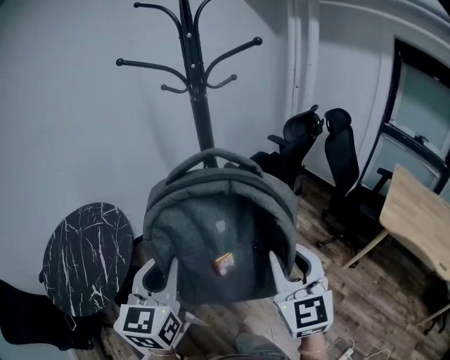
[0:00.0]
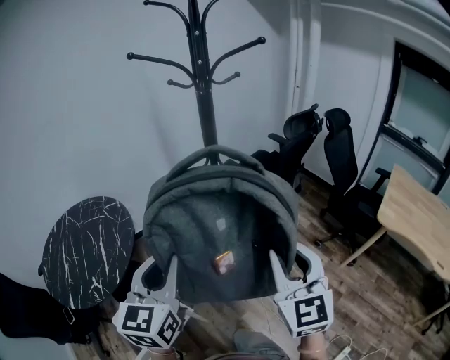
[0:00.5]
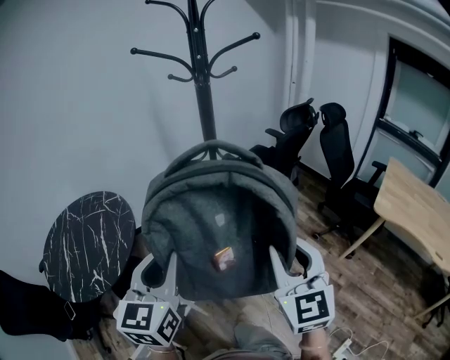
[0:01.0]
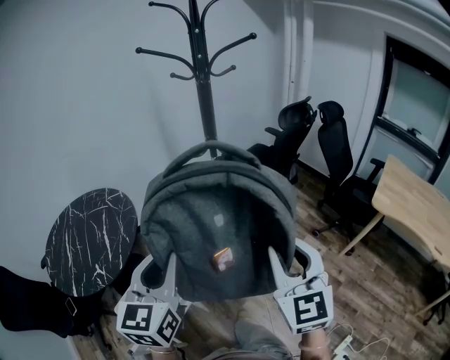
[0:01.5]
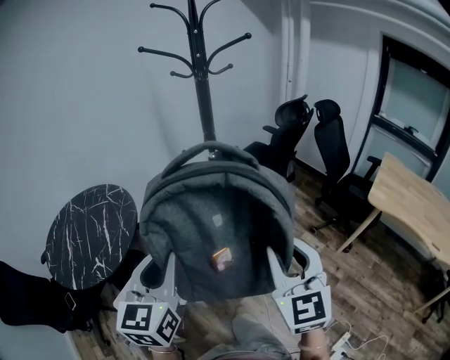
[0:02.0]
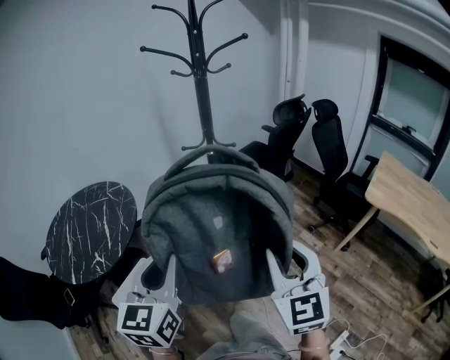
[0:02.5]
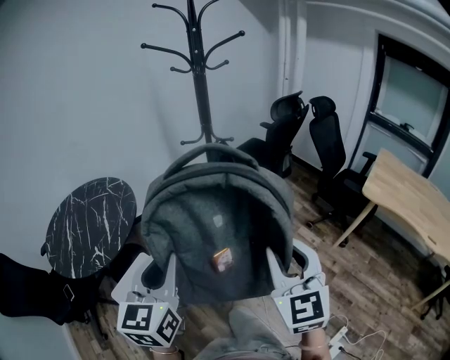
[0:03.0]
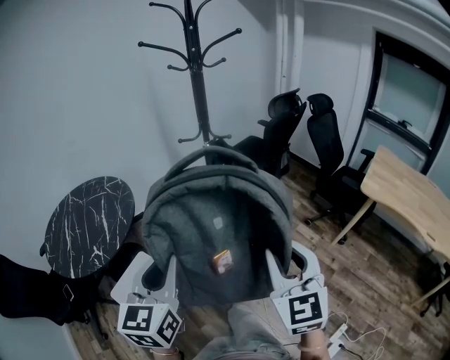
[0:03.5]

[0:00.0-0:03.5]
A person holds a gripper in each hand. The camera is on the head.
0:00.0 to 0:02.0: Both grippers travel together backward, roughly 15 cm.
0:02.0 to 0:03.5: The two grippers go some 5 cm backward.

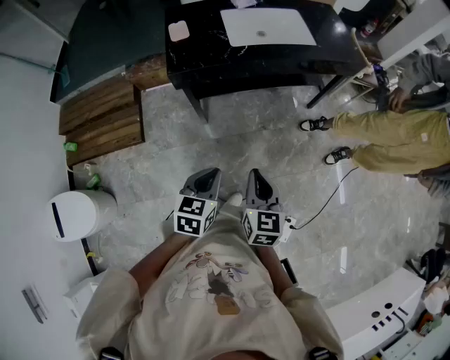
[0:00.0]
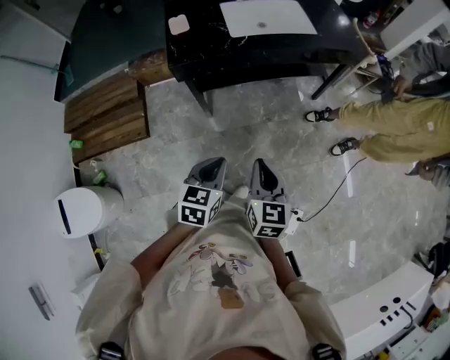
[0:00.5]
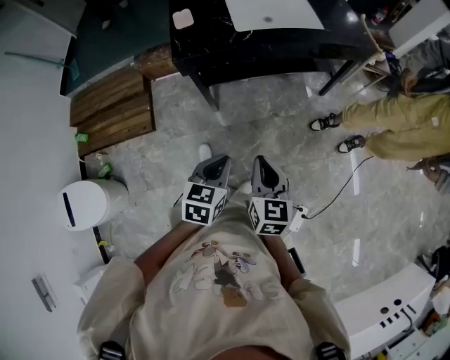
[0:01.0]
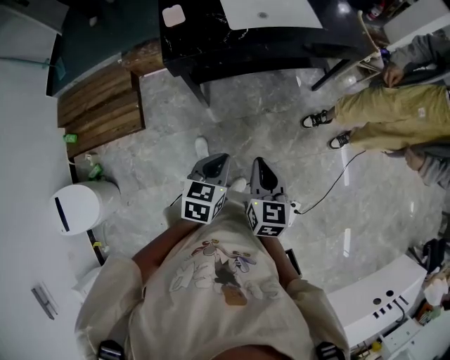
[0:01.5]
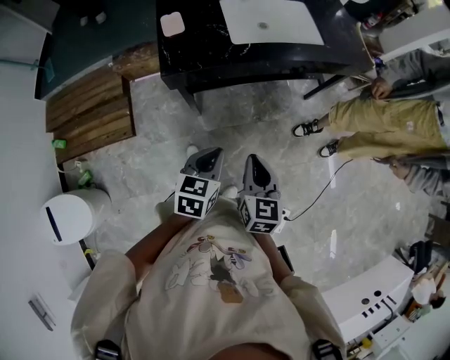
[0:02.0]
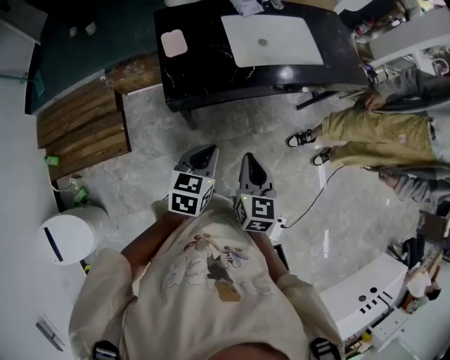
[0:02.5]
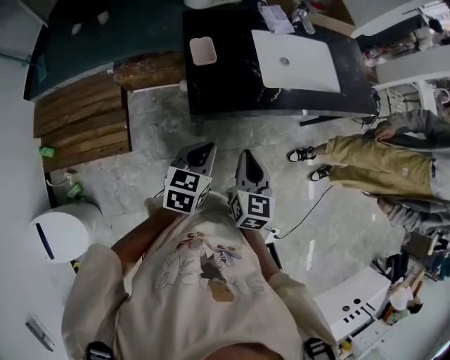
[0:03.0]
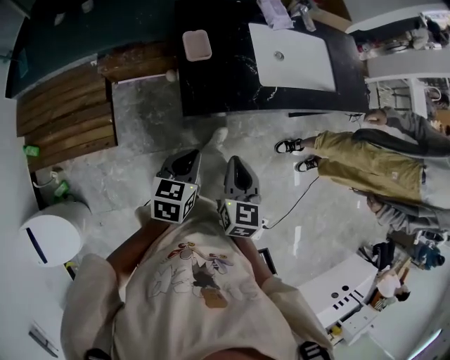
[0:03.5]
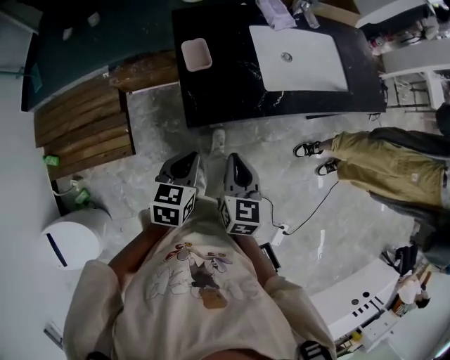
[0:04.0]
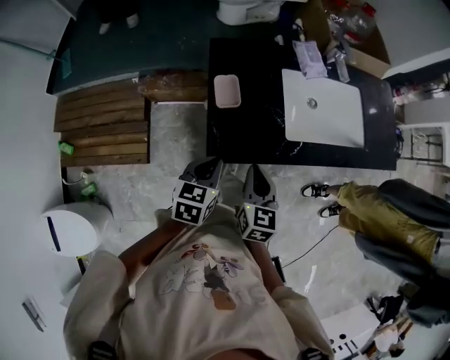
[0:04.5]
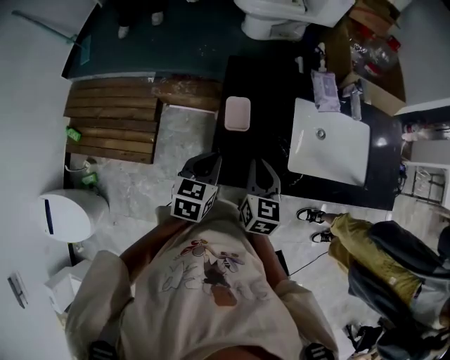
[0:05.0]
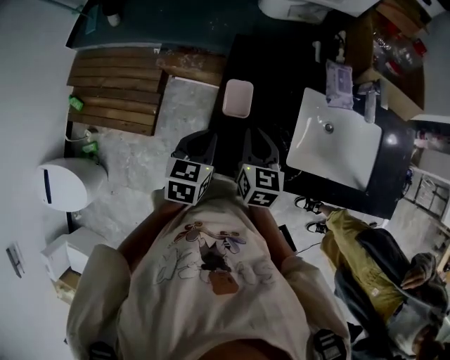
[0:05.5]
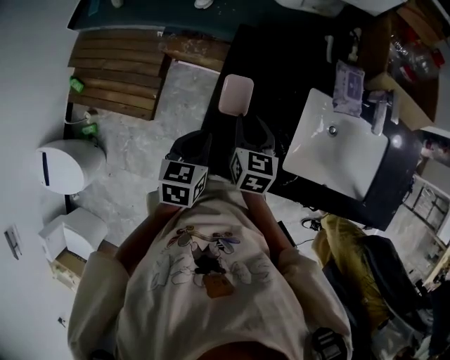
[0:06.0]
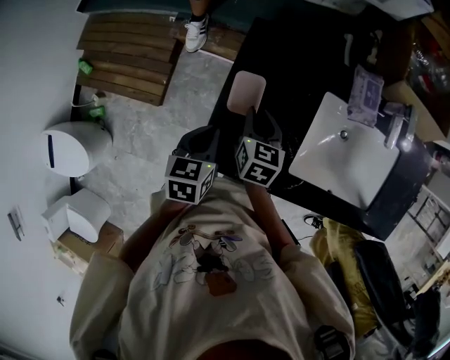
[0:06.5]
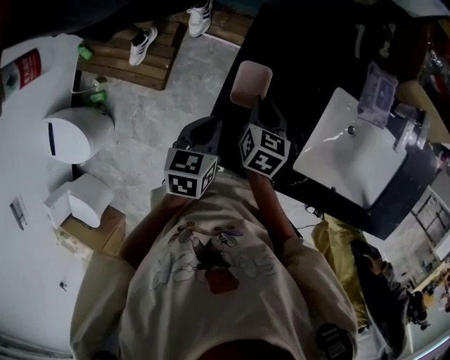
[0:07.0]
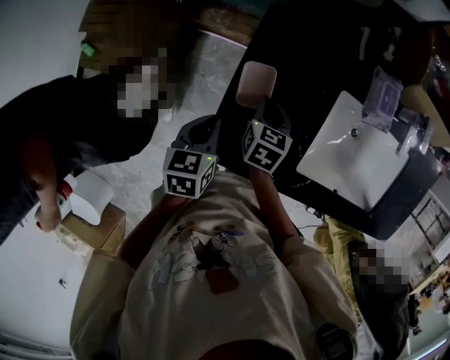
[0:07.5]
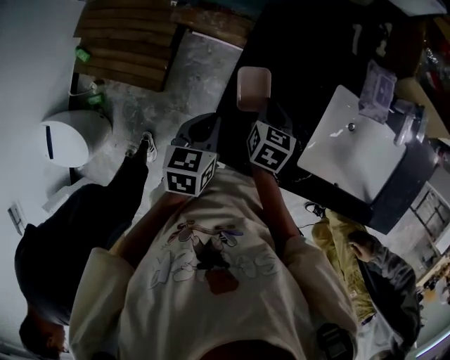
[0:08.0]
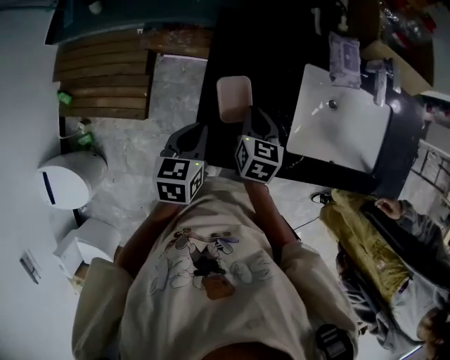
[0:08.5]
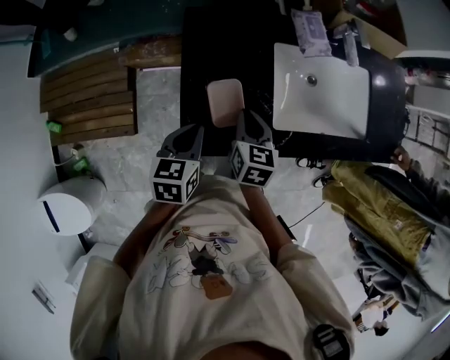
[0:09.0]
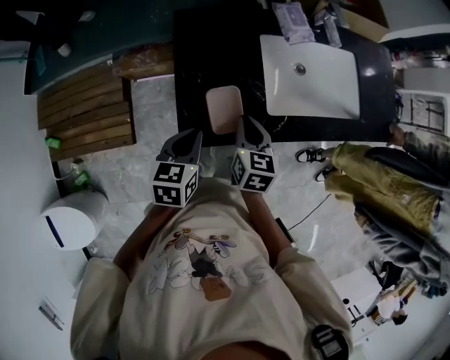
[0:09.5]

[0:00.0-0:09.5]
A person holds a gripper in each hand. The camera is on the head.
0:00.0 to 0:02.0: The left gripper is displaced forward by about 15 cm; the right gripper shifts some 10 cm forward and to the left.
0:02.0 to 0:04.0: Both grippers move to the left and forward, roughly 30 cm.
0:04.0 to 0:05.5: The left gripper shifts by approximately 25 cm, and turns by some 20 degrees; the right gripper shifts by approximately 30 cm, and changes its angle by approximately 20 degrees.
0:05.5 to 0:07.5: The right gripper is displaced downward and forward by some 15 cm. Meanwhile the left gripper moves downward, about 5 cm.
0:07.5 to 0:09.5: The right gripper shifts some 20 cm backward, to the right and upward, and changes its angle by approximately 20 degrees, while the left gripper moves backward, to the right and upward, roughly 15 cm, and changes its angle by some 30 degrees.

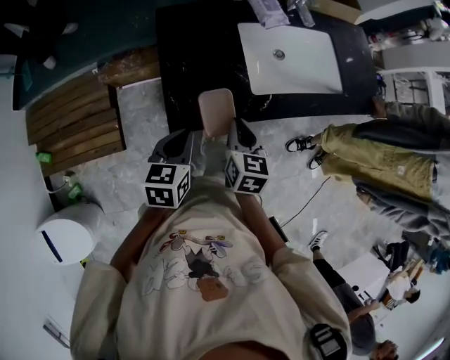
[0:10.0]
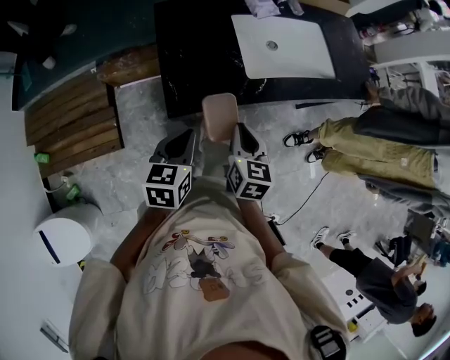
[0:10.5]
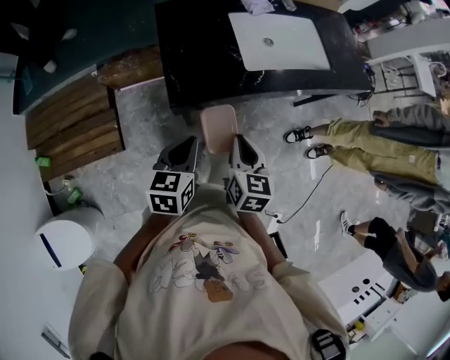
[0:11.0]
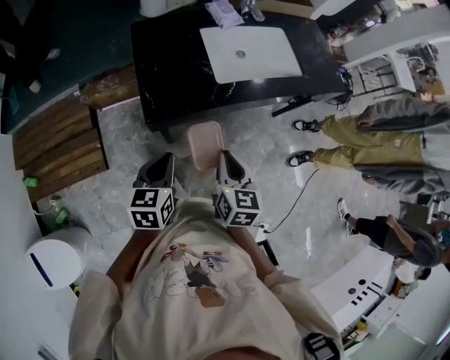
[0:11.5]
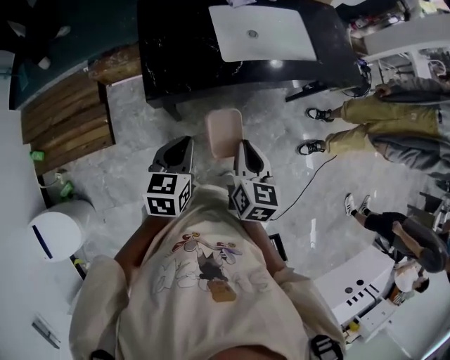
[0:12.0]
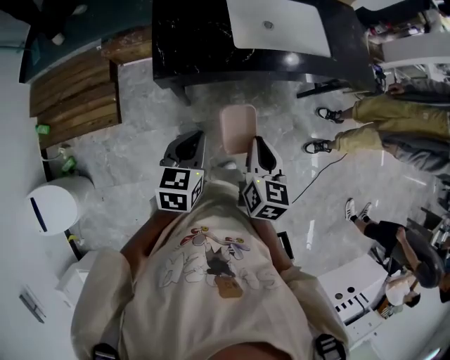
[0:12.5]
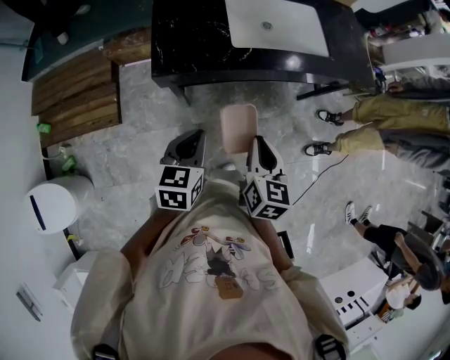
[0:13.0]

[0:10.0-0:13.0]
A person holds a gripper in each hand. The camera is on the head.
0:10.0 to 0:11.5: The left gripper heads backward, covering approximately 15 cm; the right gripper goes some 20 cm backward and to the right.
0:11.5 to 0:13.0: The grippers both shift to the right by about 15 cm.

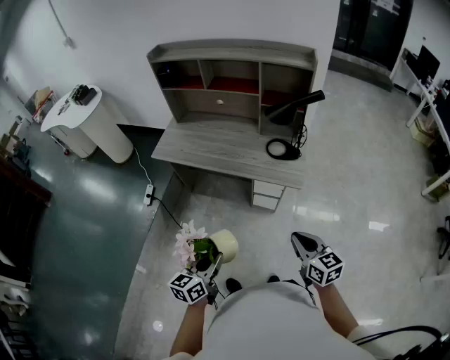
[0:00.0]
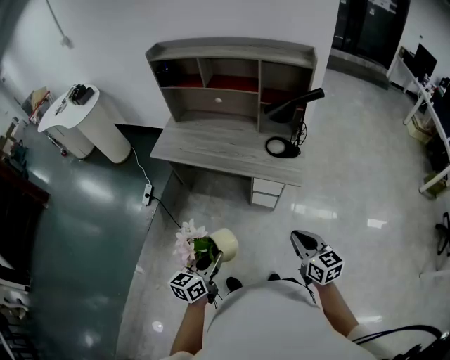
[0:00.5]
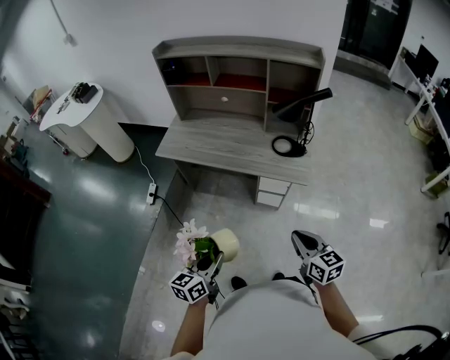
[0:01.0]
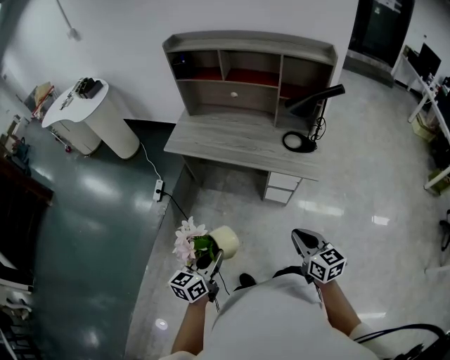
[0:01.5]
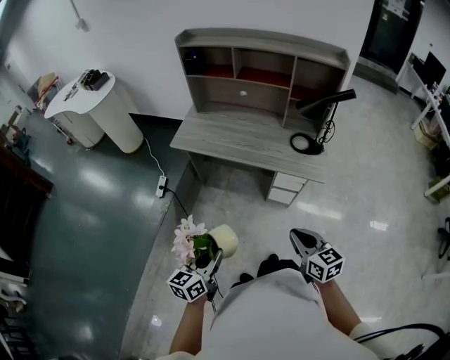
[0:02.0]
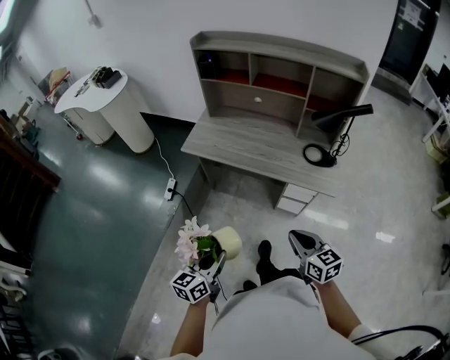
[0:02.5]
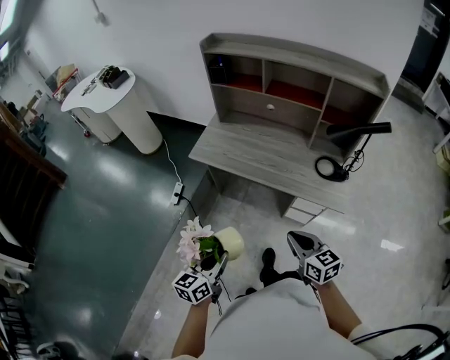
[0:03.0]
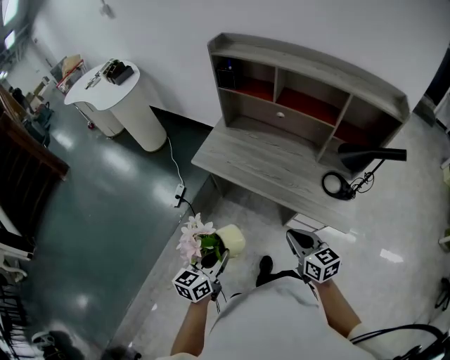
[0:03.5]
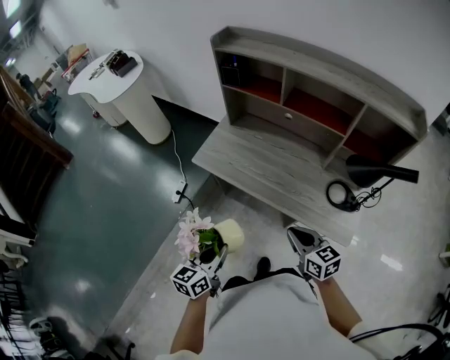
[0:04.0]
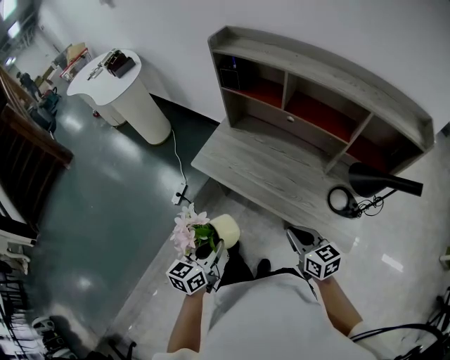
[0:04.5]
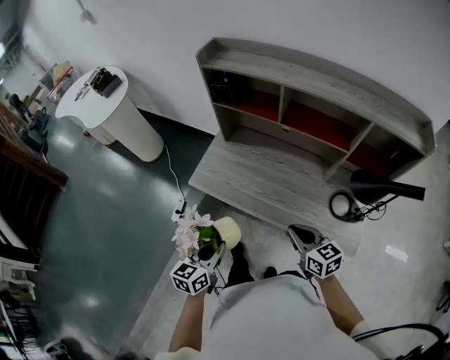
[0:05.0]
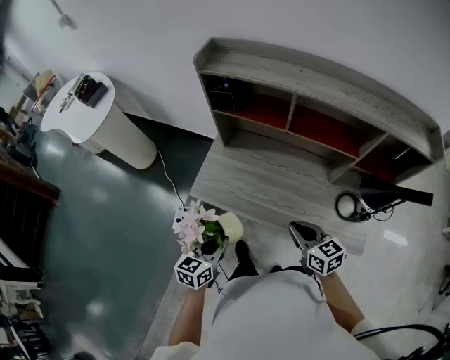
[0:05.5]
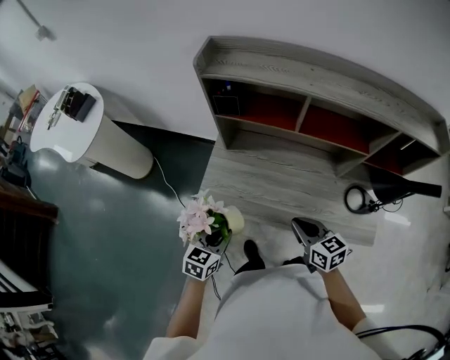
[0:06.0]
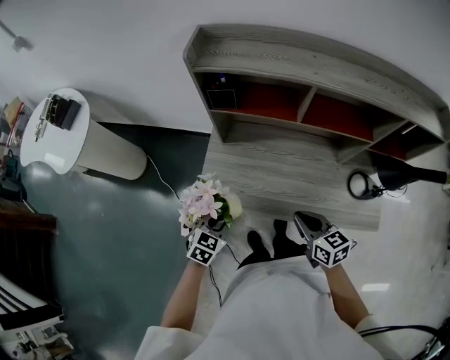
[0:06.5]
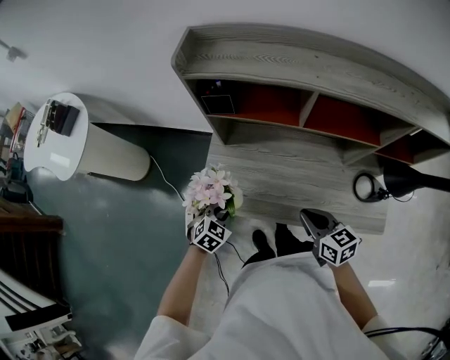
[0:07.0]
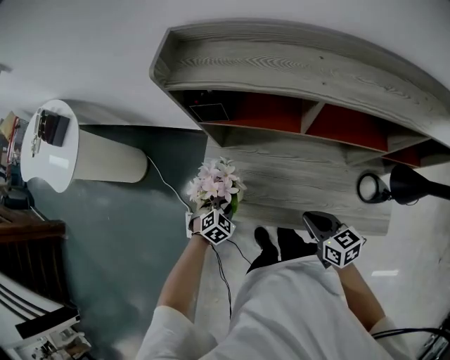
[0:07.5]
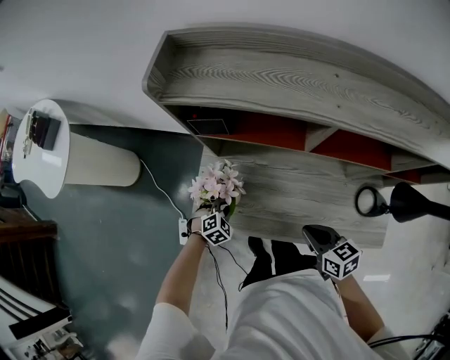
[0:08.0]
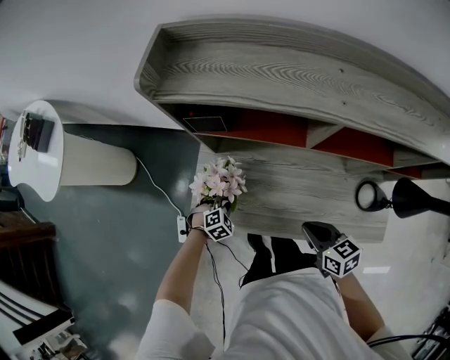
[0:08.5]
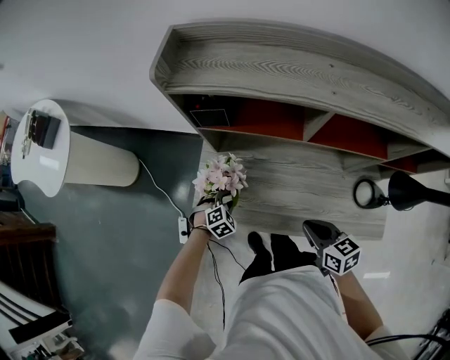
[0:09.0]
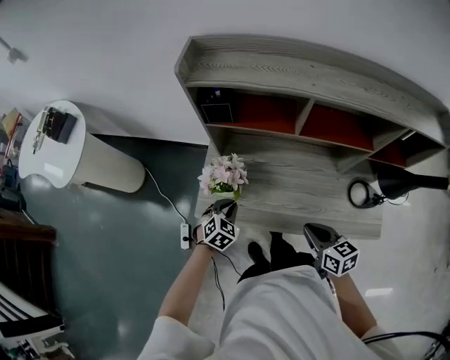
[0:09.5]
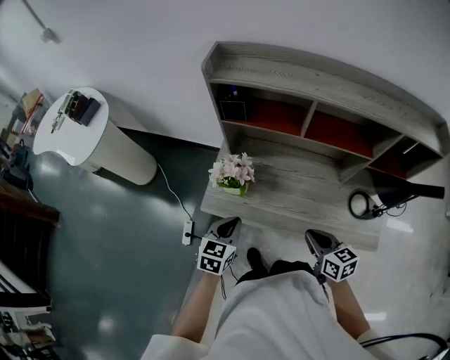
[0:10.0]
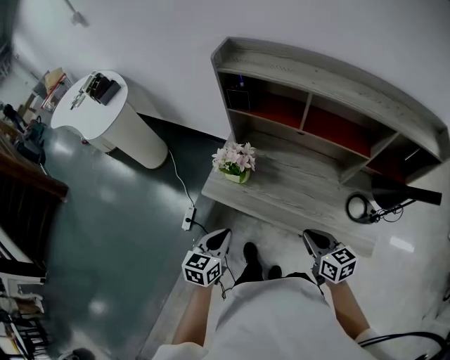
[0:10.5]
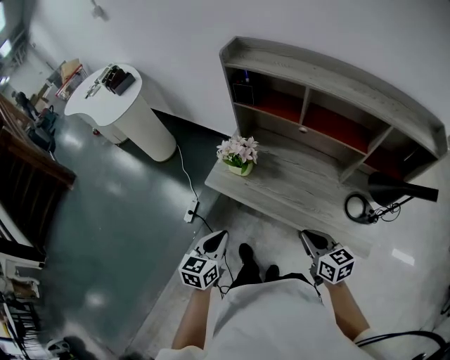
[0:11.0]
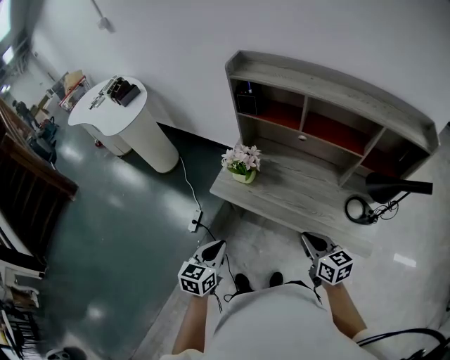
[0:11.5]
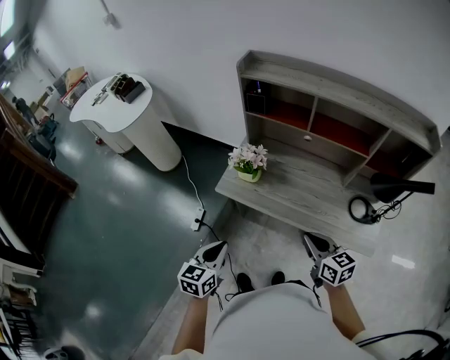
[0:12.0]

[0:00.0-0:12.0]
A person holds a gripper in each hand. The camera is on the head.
0:00.0 to 0:02.0: Both grippers move to the left, roughly 15 cm.
0:02.0 to 0:04.0: Both grippers move forward, roughly 30 cm.
0:04.0 to 0:06.0: The left gripper is displaced forward by roughly 30 cm, and turns by approximately 30 degrees. Meanwhile the right gripper travels forward and to the left by roughly 25 cm.
0:06.0 to 0:08.0: The right gripper heads forward and downward, covering approximately 10 cm; the left gripper heads downward and forward, covering roughly 30 cm, and twists some 40 degrees clockwise, seen from behind.
0:08.0 to 0:10.0: The left gripper travels upward and backward by approximately 25 cm, and rotates around the line of its fingers by about 40 degrees, counterclockwise from behind; the right gripper moves backward and upward, about 10 cm.
0:10.0 to 0:12.0: The right gripper heads backward and upward, covering roughly 15 cm. Meanwhile the left gripper travels backward by roughly 25 cm.
